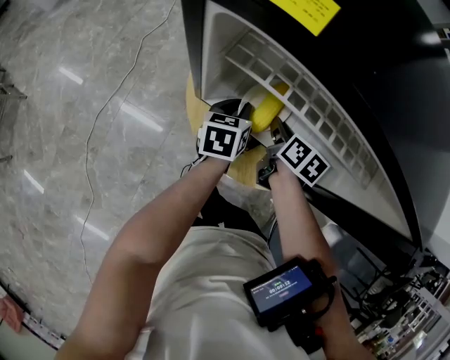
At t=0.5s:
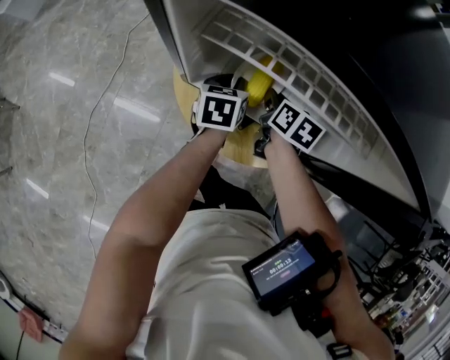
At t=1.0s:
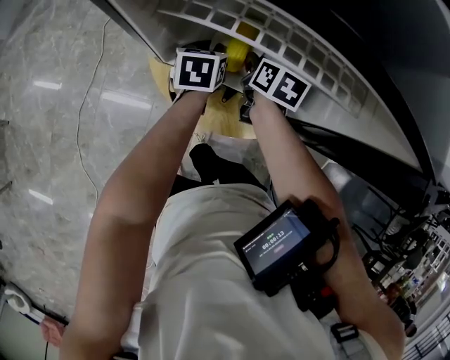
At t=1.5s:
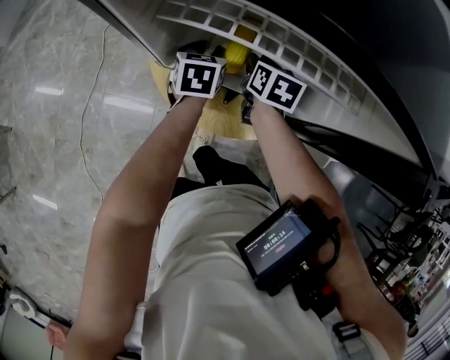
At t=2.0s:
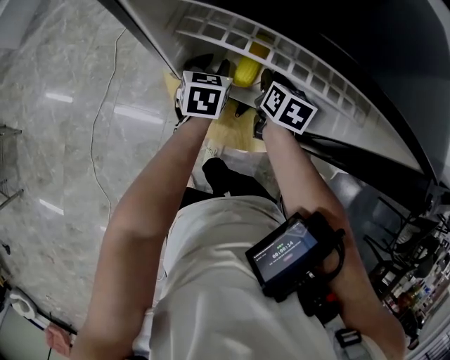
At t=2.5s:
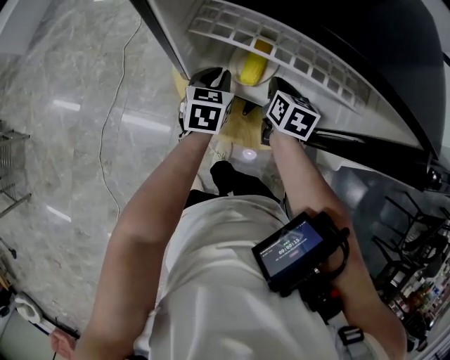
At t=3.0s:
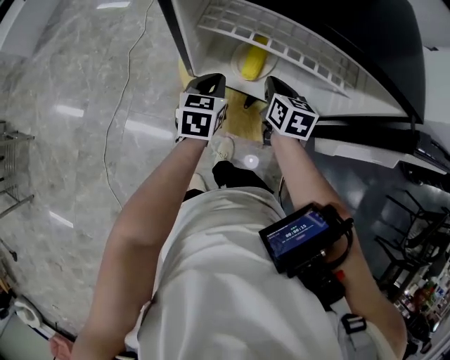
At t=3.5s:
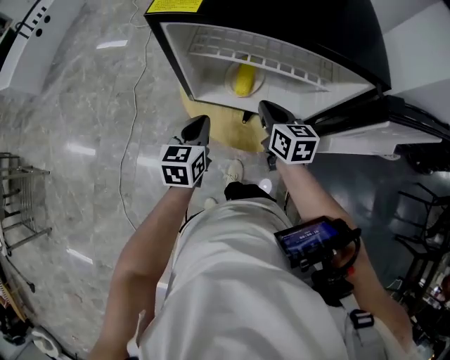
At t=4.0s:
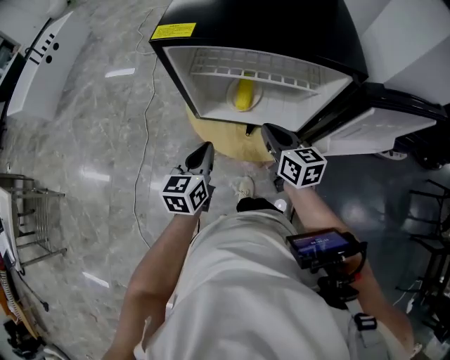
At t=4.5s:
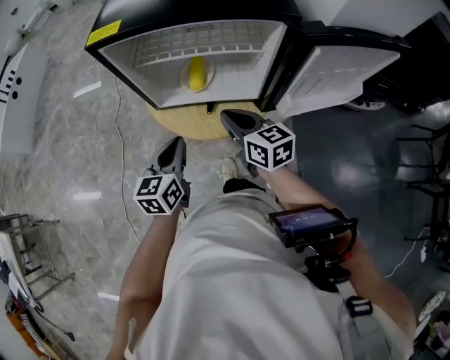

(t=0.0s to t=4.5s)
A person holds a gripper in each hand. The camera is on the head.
t=0.0s - t=2.0s: The grippers stay close to where they were, moving slightly.
t=2.0s - t=4.5s: The grippers both shift backward and upward by roughly 30 cm. The left gripper changes its angle by some 20 degrees, and closes up. The right gripper turns by some 30 degrees, and closes its fingers.

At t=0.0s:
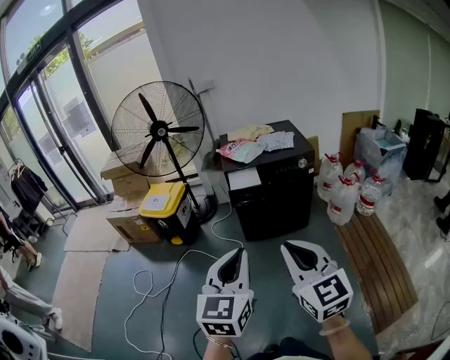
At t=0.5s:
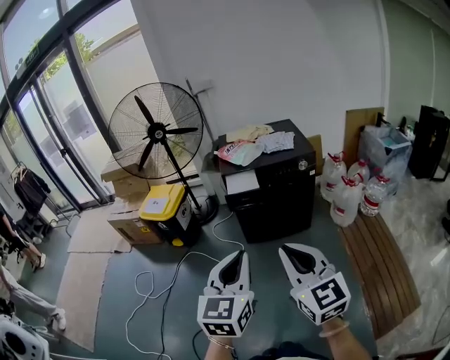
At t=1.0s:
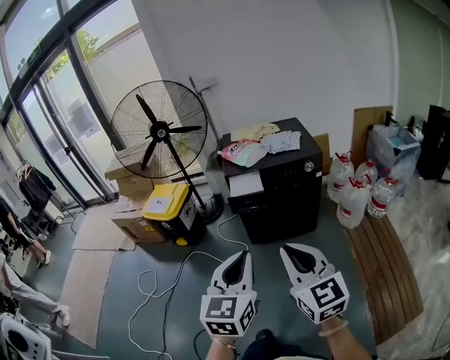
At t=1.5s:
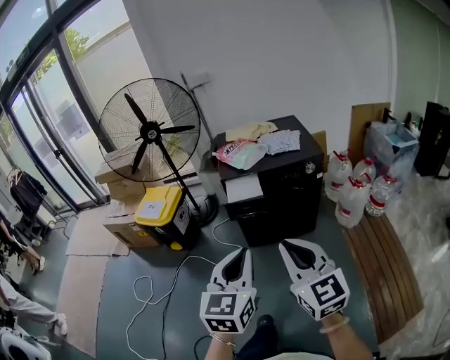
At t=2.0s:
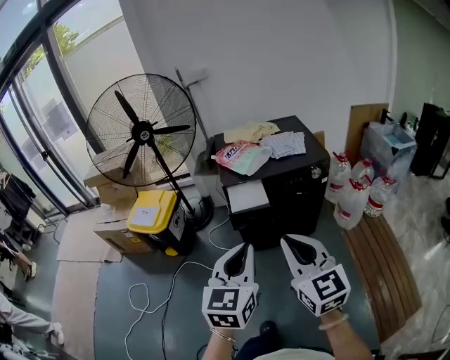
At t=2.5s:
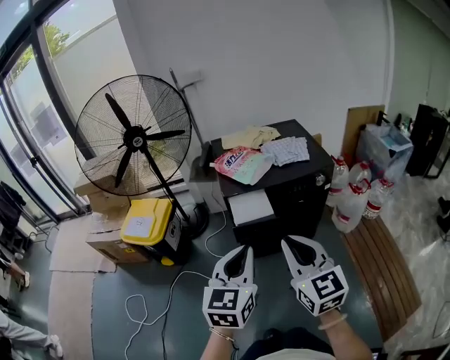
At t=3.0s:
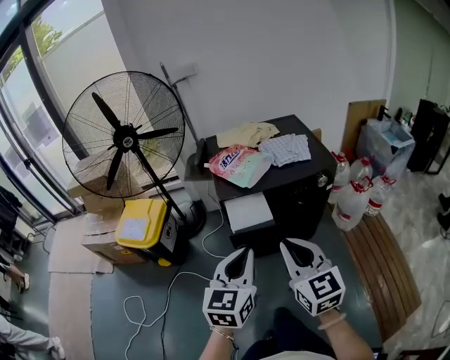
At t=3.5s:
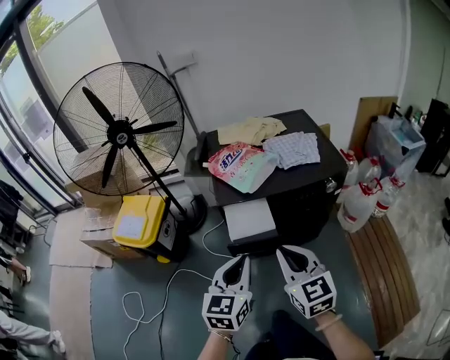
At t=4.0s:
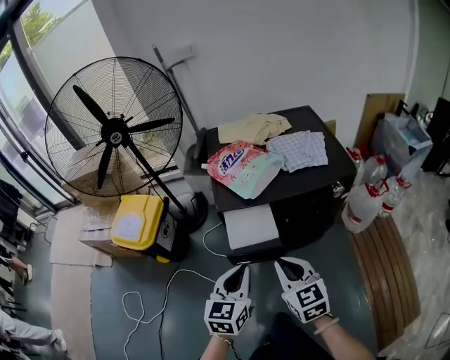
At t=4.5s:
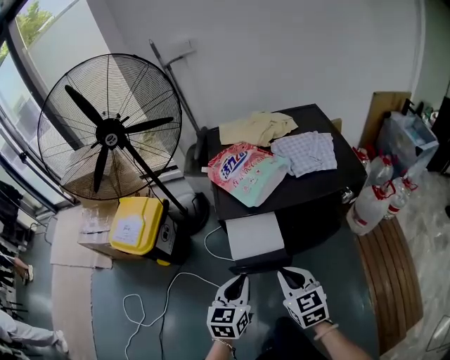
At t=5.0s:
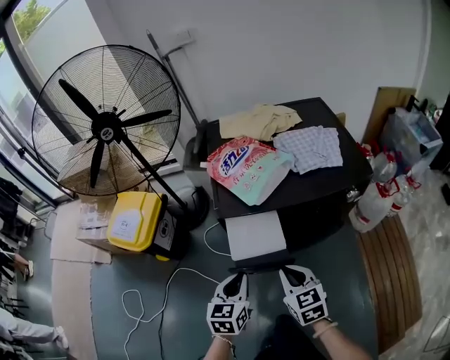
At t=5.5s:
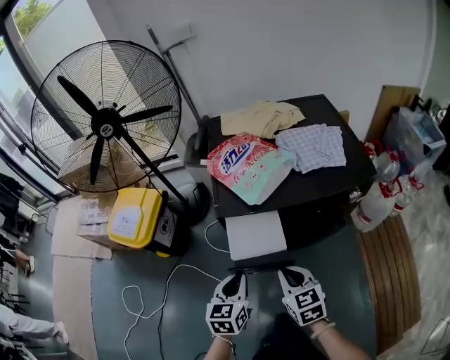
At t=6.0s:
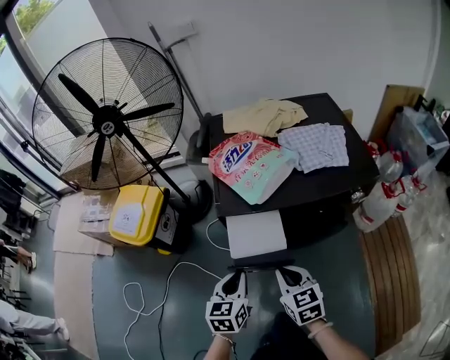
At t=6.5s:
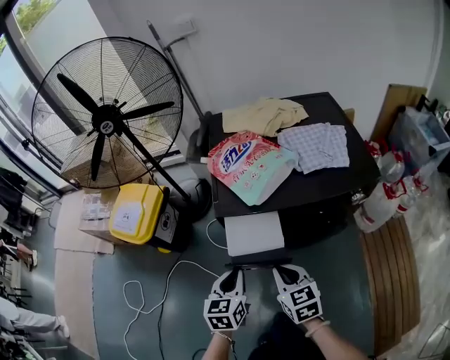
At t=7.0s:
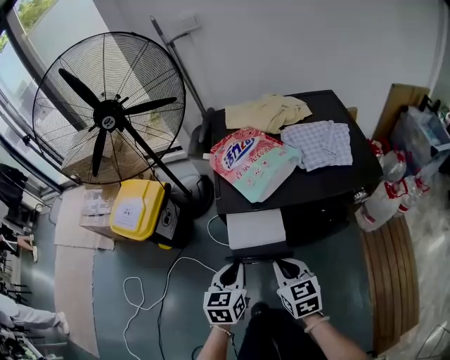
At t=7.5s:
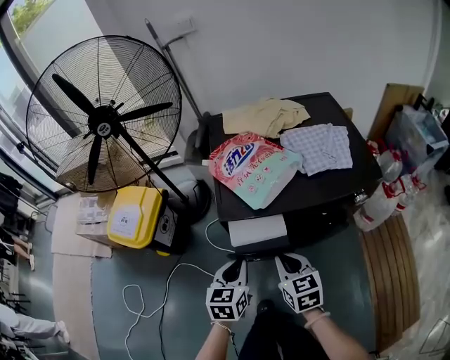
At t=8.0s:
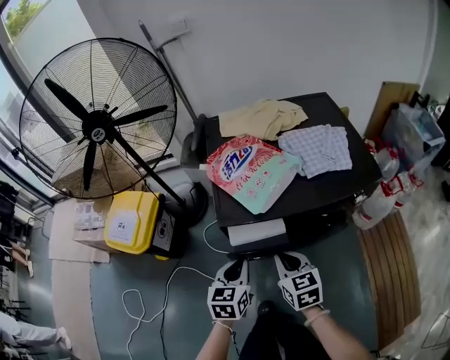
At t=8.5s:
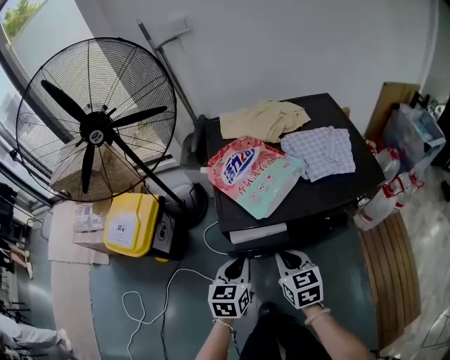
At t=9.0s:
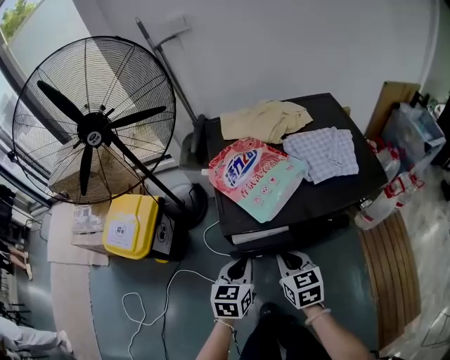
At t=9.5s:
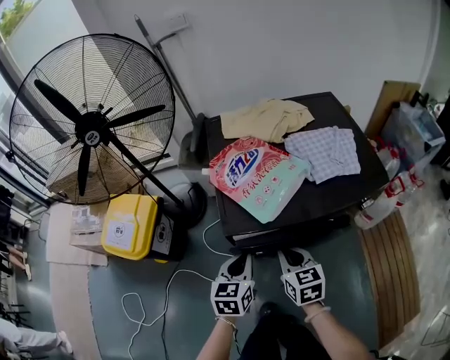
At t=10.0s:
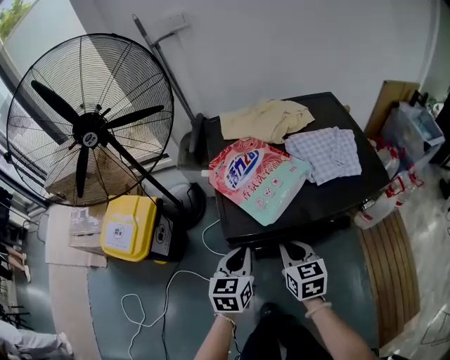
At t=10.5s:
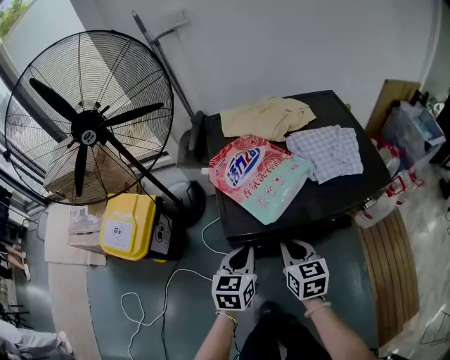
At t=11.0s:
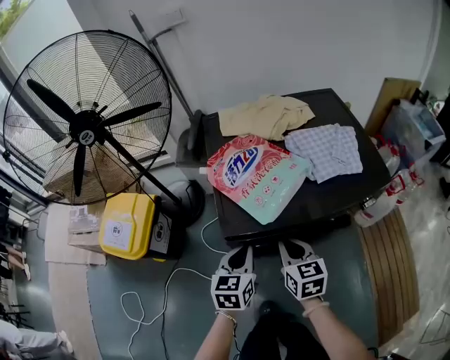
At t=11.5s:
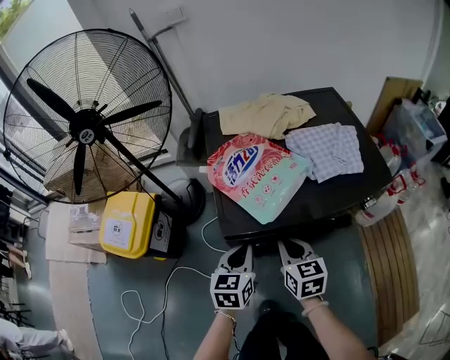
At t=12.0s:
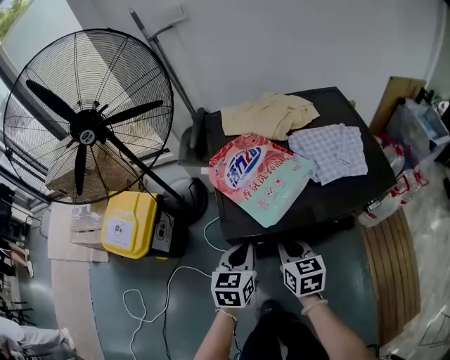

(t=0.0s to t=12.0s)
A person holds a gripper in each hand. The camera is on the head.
t=0.0s - t=2.0s: Both grippers travel together forward, about 25 cm.
t=2.0s - t=4.0s: The two grippers go roughly 30 cm forward and downward.
t=4.0s - t=6.0s: Both grippers travel together downward and forward, roughly 10 cm.
t=6.0s - t=8.0s: Both grippers move forward, roughly 10 cm.
t=8.0s - t=10.0s: Both grippers travel together forward, about 5 cm.
t=10.0s - t=12.0s: The grippers move only a little.

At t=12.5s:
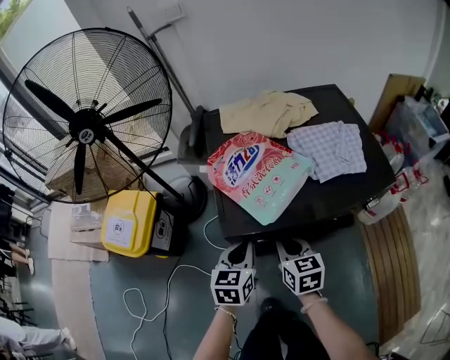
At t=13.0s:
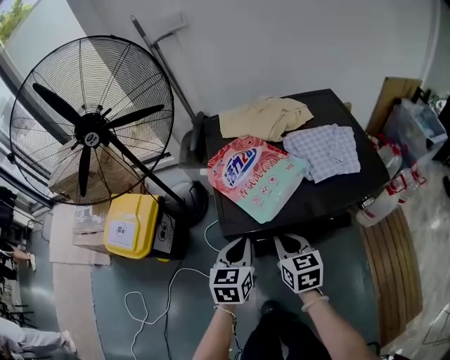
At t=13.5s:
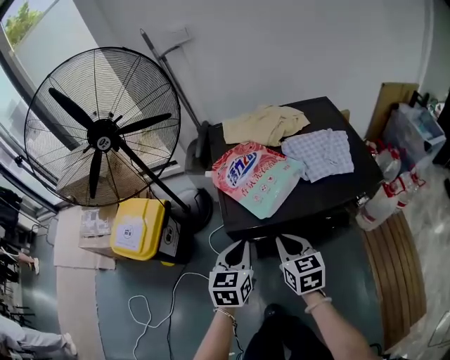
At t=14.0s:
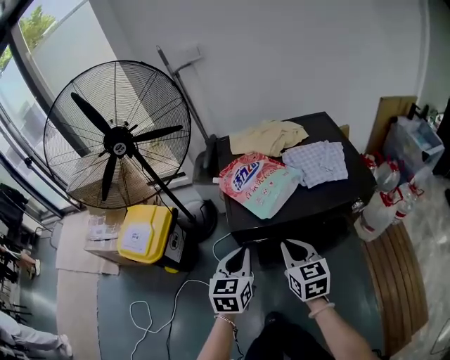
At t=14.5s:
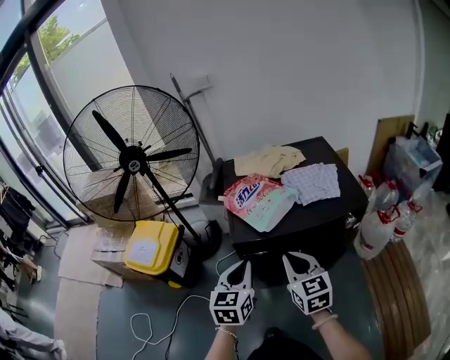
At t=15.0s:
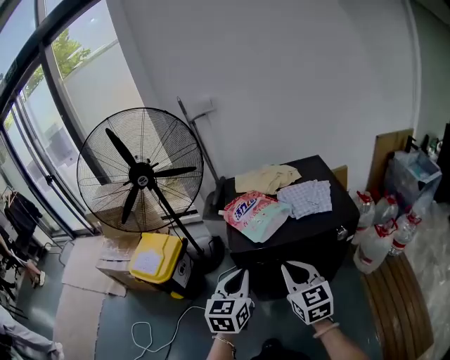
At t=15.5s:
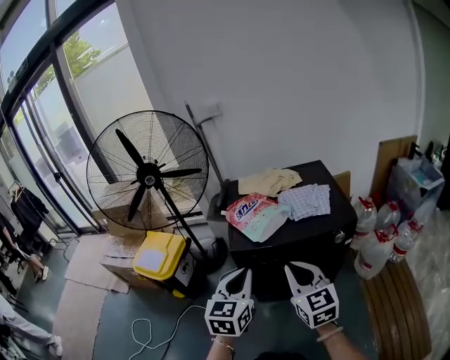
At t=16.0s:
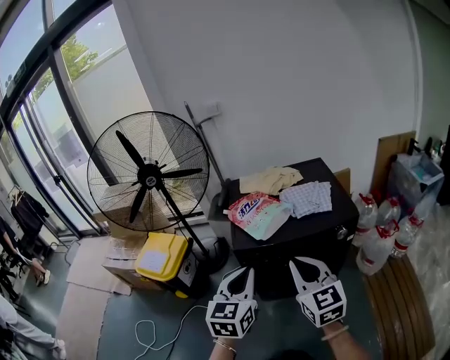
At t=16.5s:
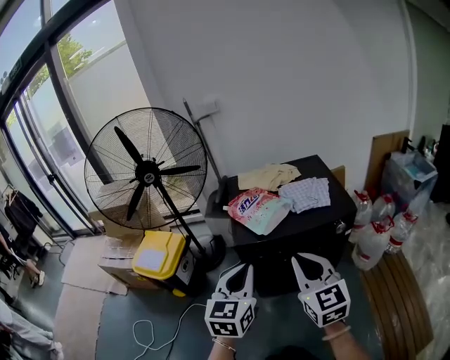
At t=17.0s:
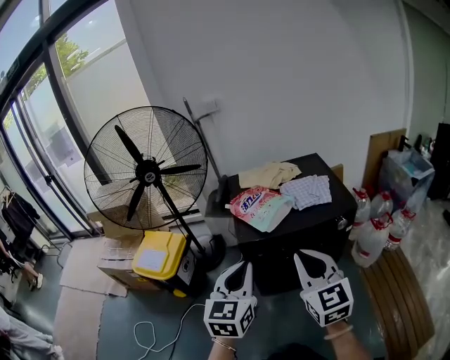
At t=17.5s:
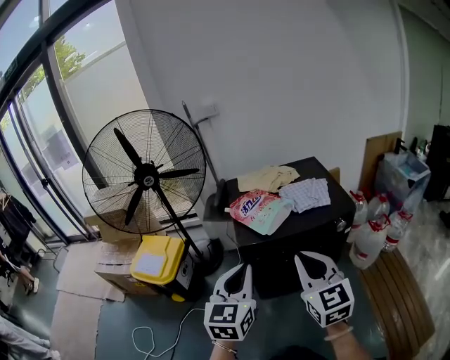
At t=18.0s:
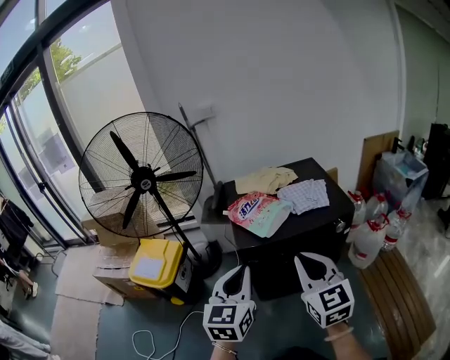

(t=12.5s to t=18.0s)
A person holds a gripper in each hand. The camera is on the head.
t=12.5s - t=14.5s: The grippers both shift upward and backward by some 20 cm. The right gripper rotates roughly 20 degrees.
t=14.5s - t=16.0s: The grippers both shift upward and backward by some 15 cm.
t=16.0s - t=18.0s: The left gripper goes some 5 cm to the left. Meanwhile the right gripper changes place by approximately 5 cm.

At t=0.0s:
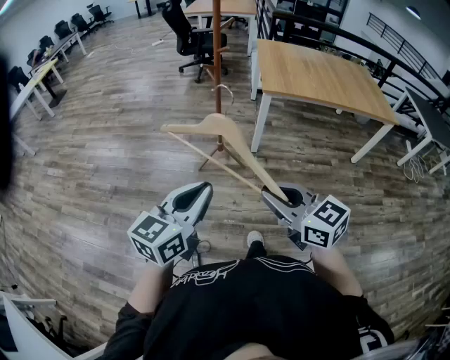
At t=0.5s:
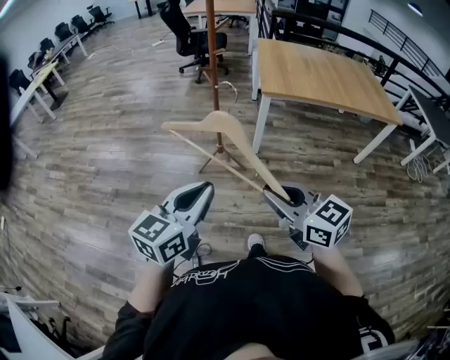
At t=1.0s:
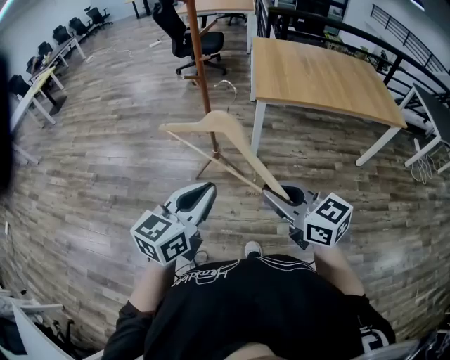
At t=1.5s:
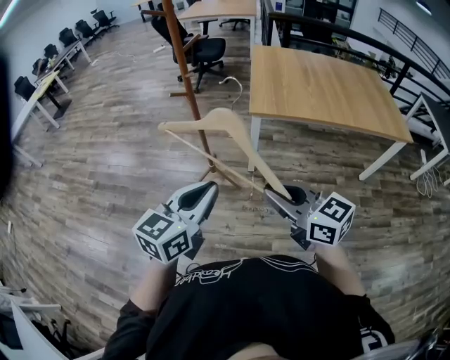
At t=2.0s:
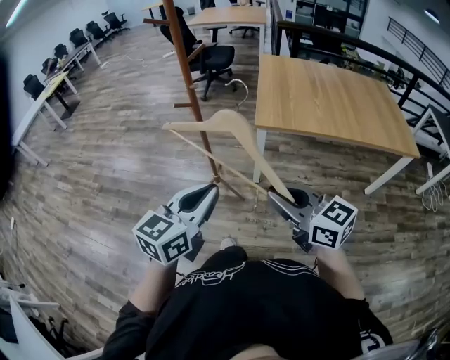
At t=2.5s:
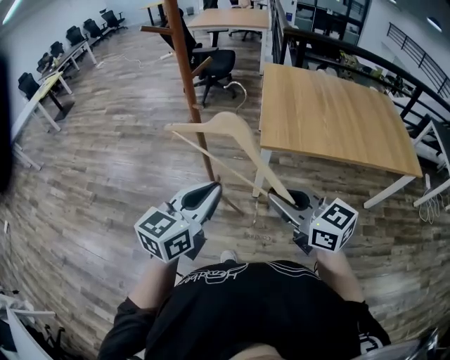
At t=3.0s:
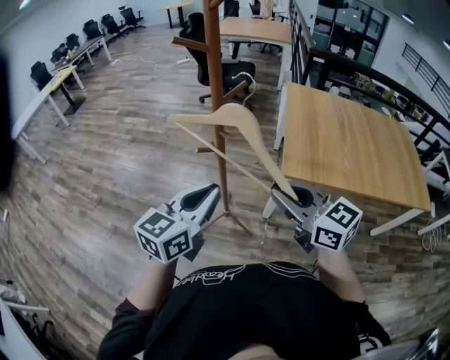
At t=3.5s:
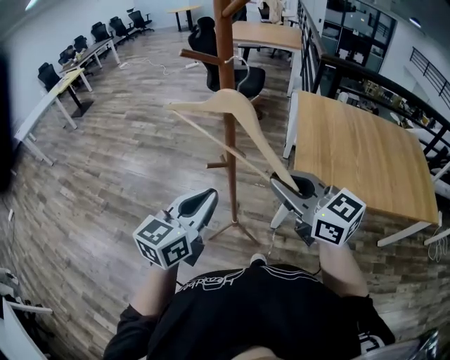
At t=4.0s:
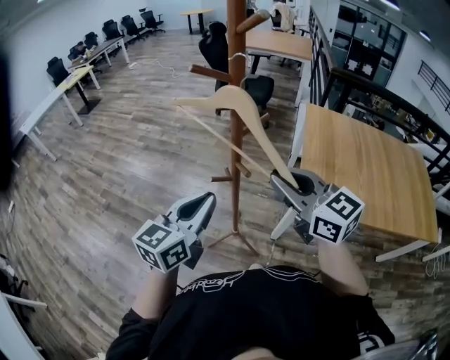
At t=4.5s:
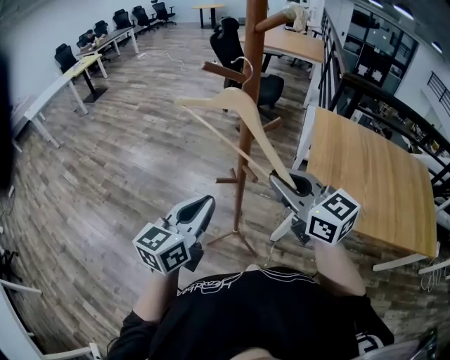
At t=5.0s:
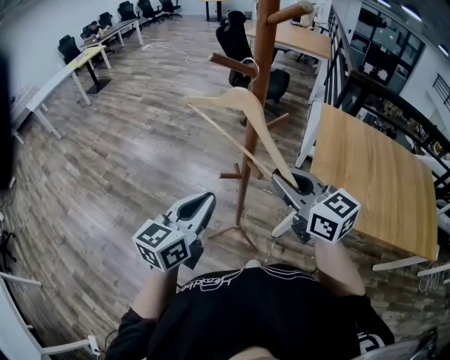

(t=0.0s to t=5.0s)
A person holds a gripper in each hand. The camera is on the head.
t=0.0s - t=2.5s: The grippers both shift forward and to the right by about 40 cm.
t=2.5s - t=5.0s: The left gripper moves forward and to the left, some 25 cm; the right gripper heads forward, covering approximately 30 cm.
